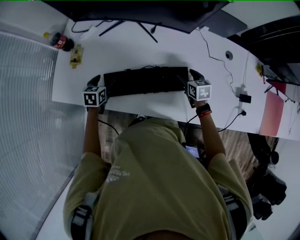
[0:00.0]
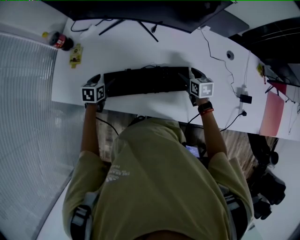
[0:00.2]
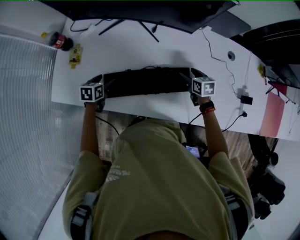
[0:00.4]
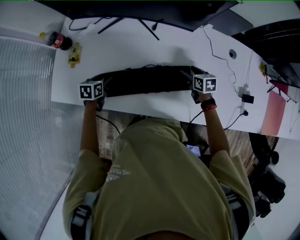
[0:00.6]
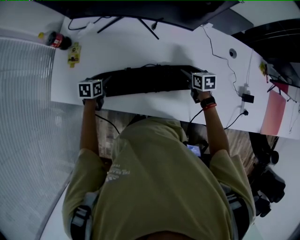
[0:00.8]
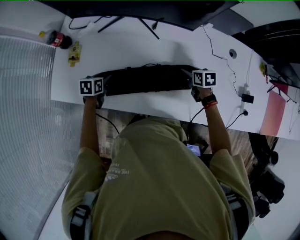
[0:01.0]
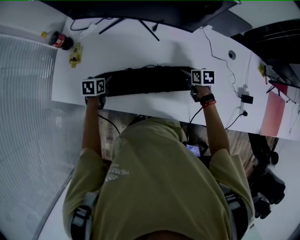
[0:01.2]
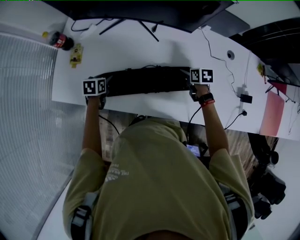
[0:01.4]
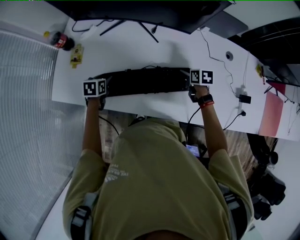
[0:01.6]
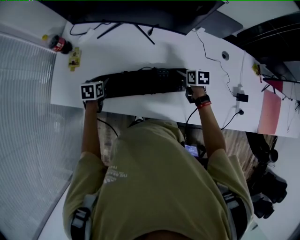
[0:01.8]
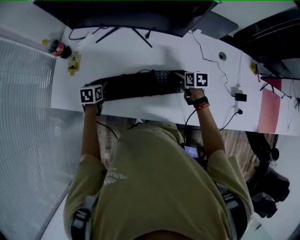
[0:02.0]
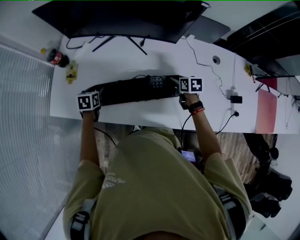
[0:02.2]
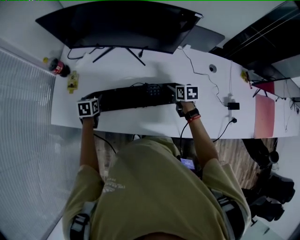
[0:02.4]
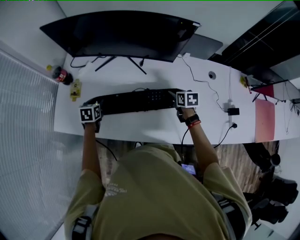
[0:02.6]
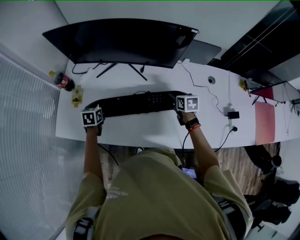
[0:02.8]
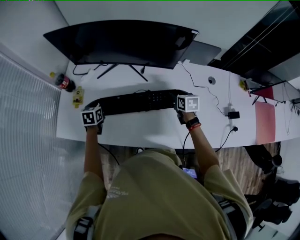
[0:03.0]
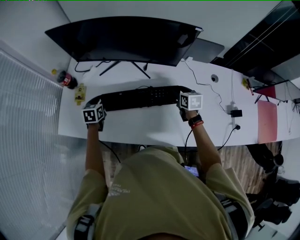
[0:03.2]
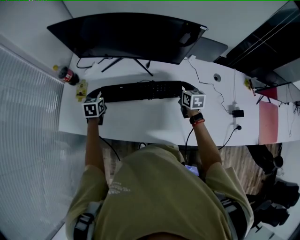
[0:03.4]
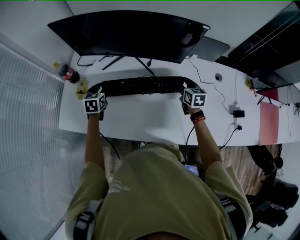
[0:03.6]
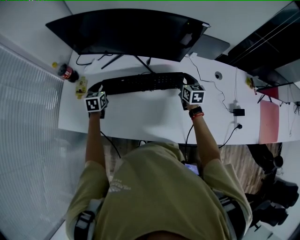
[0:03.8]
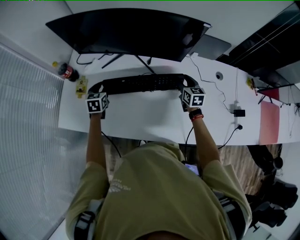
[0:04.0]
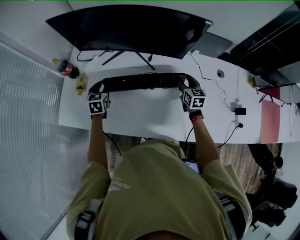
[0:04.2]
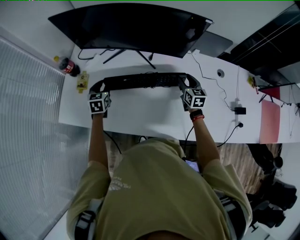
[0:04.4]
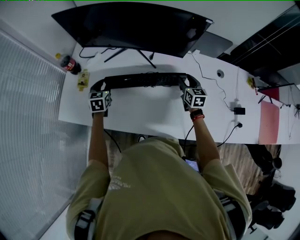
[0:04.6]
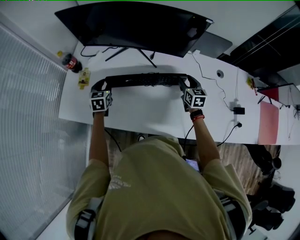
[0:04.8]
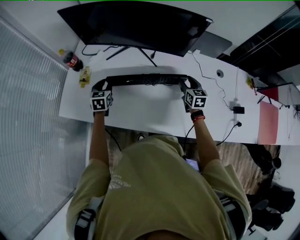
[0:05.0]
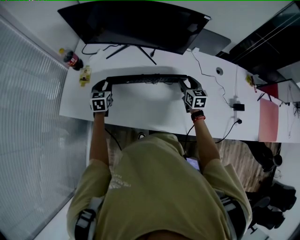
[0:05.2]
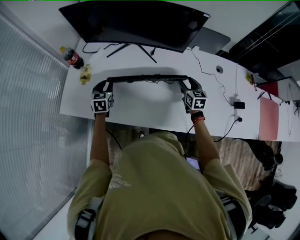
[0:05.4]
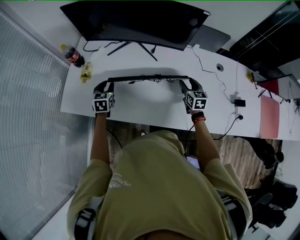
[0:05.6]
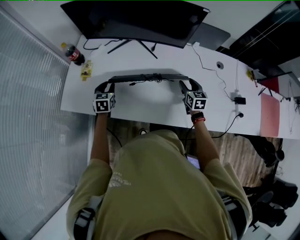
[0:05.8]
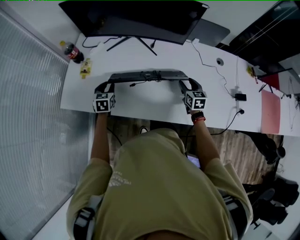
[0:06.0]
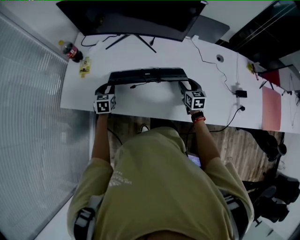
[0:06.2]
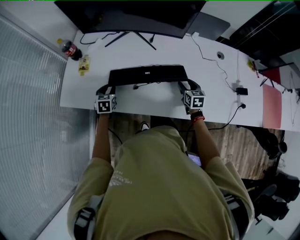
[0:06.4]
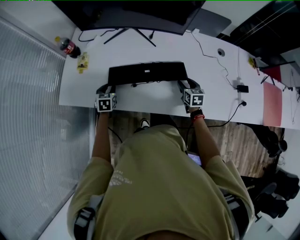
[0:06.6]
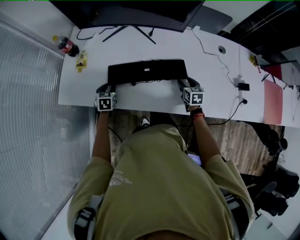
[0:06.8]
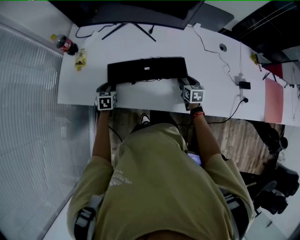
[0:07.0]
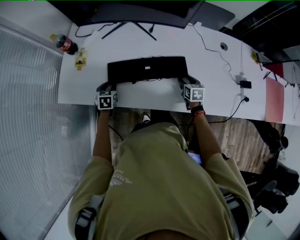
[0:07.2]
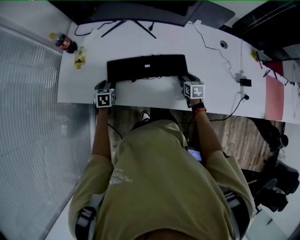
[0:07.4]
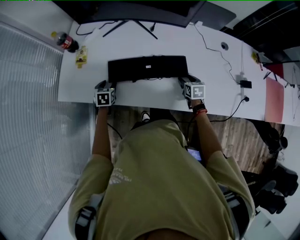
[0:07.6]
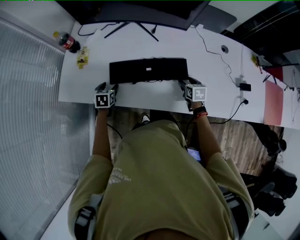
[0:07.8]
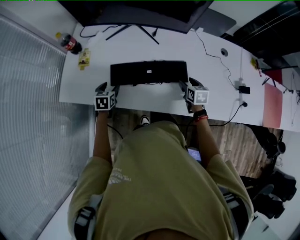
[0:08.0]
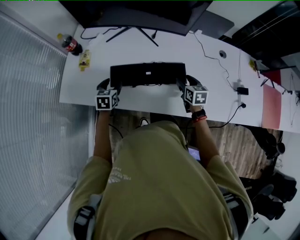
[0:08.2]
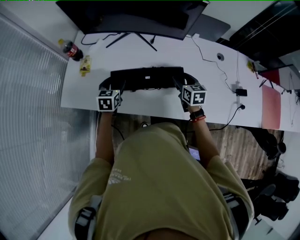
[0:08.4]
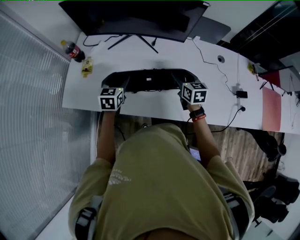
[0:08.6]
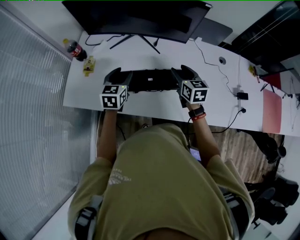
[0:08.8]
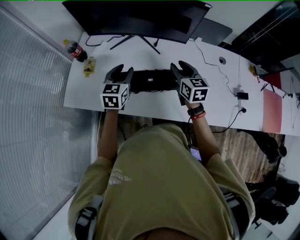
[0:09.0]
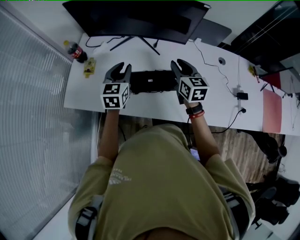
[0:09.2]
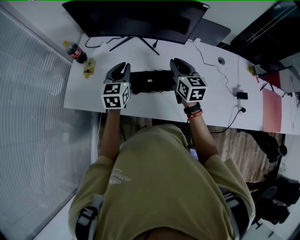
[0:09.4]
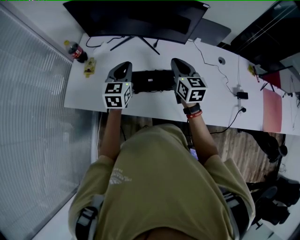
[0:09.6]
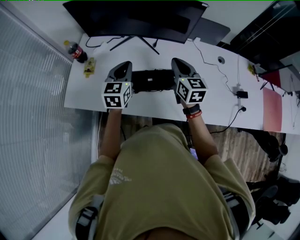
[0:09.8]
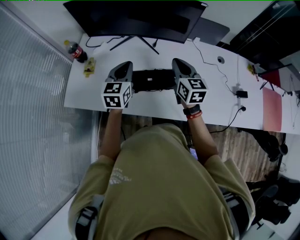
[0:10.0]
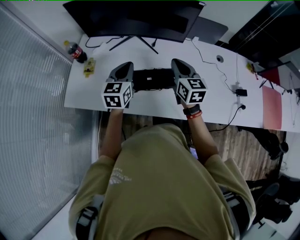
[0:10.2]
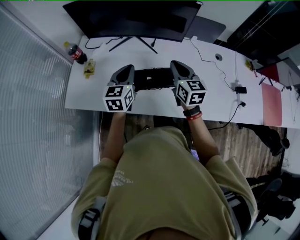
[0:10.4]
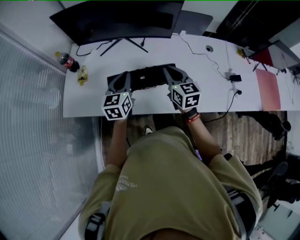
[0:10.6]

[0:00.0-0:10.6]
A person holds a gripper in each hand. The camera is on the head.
0.0 to 1.6 s: The left gripper closes.
1.6 to 3.0 s: The left gripper travels upward and forward by roughly 10 cm; the right gripper goes about 10 cm upward.
4.6 to 6.0 s: Both grippers travel together backward, about 10 cm.
6.0 to 7.6 s: The grippers both shift downward by roughly 10 cm. The right gripper swivels some 20 degrees.
7.6 to 9.0 s: The left gripper is displaced upward and to the right by roughly 25 cm, and tips its fingers upward by some 30 degrees; the right gripper goes some 25 cm upward and to the left, and rotates roughly 30 degrees.
9.0 to 10.6 s: The two grippers go about 5 cm backward. The left gripper closes up, while the right gripper closes up.

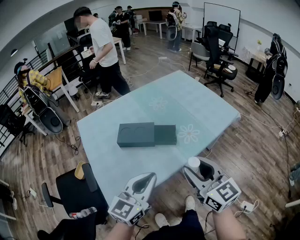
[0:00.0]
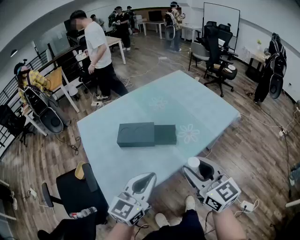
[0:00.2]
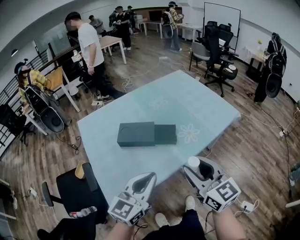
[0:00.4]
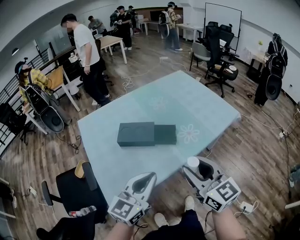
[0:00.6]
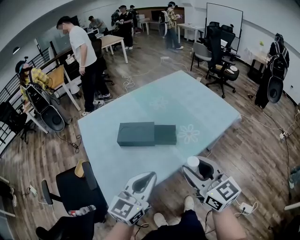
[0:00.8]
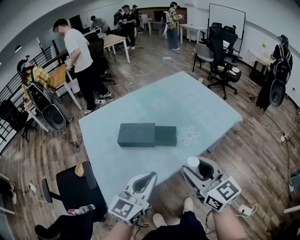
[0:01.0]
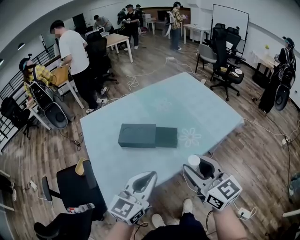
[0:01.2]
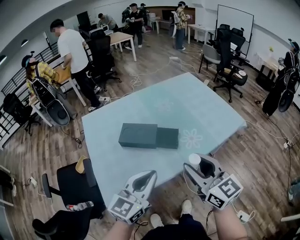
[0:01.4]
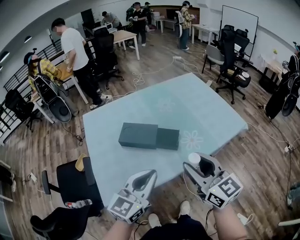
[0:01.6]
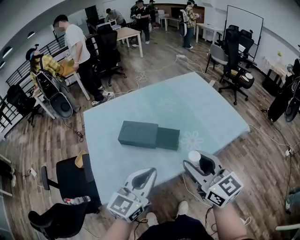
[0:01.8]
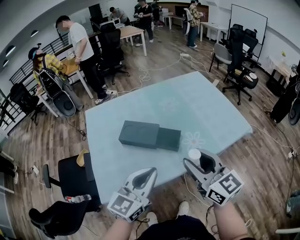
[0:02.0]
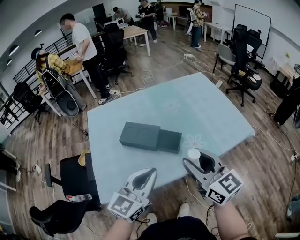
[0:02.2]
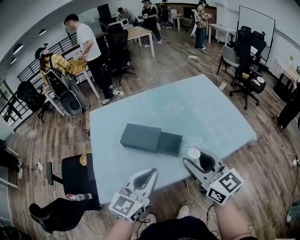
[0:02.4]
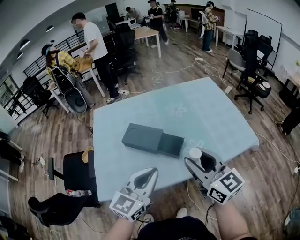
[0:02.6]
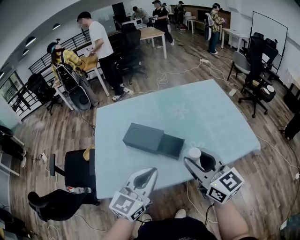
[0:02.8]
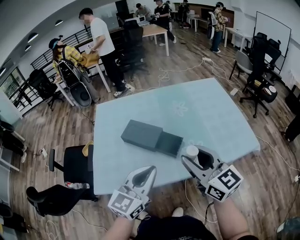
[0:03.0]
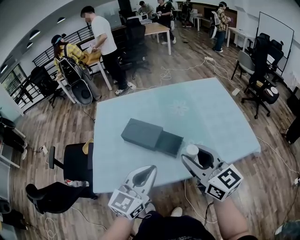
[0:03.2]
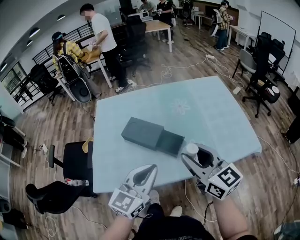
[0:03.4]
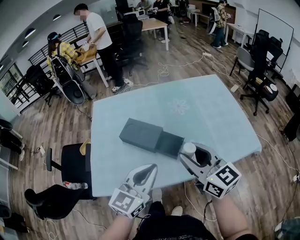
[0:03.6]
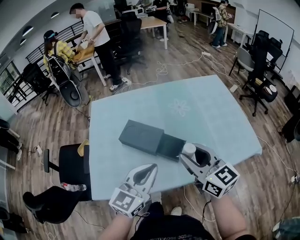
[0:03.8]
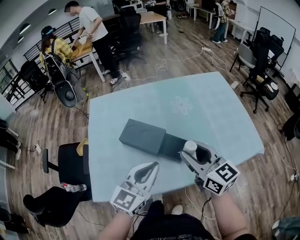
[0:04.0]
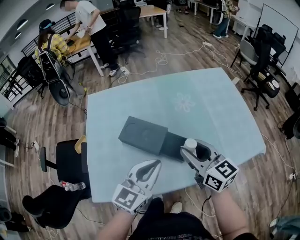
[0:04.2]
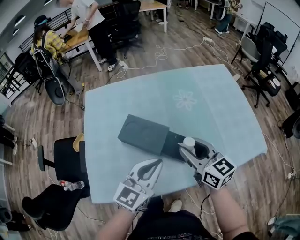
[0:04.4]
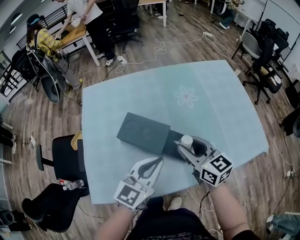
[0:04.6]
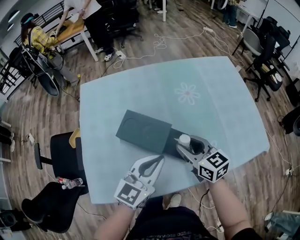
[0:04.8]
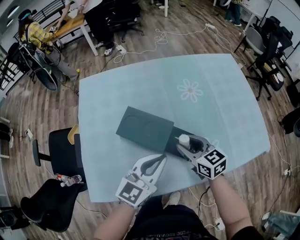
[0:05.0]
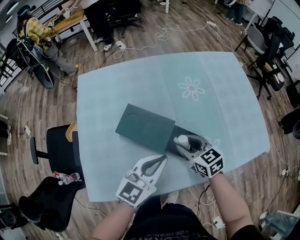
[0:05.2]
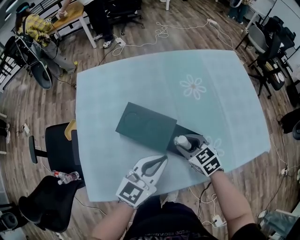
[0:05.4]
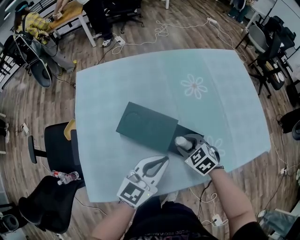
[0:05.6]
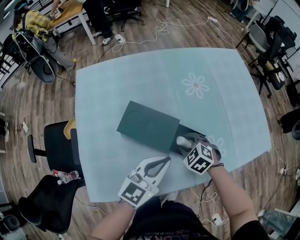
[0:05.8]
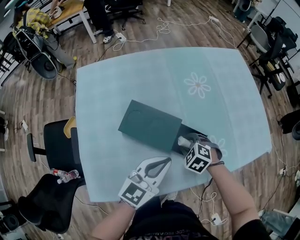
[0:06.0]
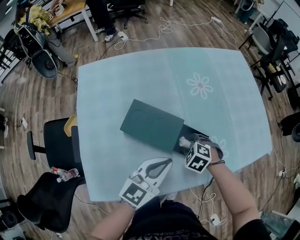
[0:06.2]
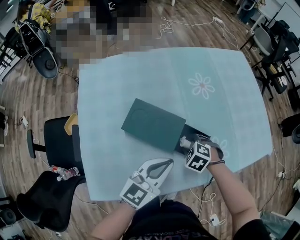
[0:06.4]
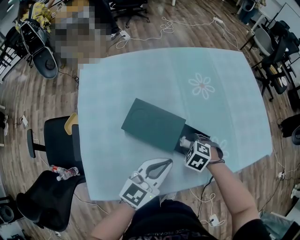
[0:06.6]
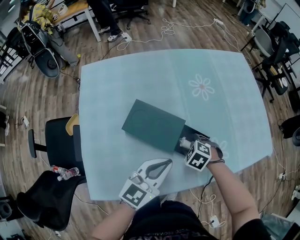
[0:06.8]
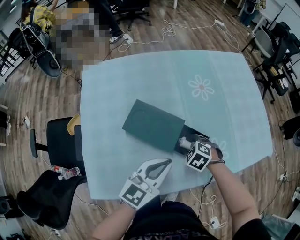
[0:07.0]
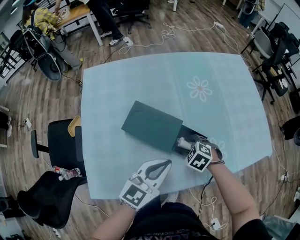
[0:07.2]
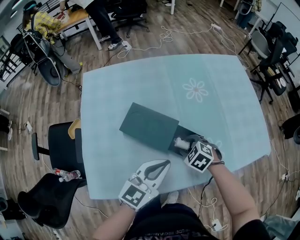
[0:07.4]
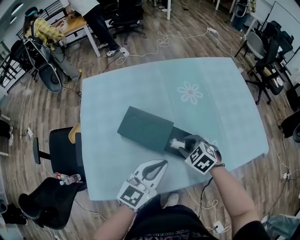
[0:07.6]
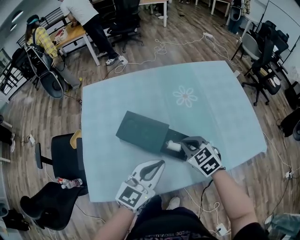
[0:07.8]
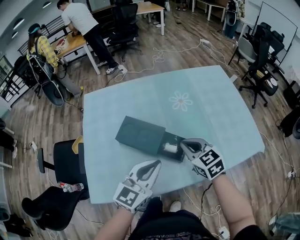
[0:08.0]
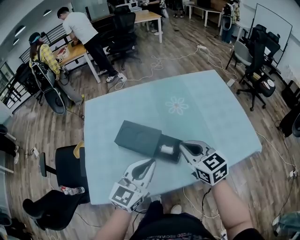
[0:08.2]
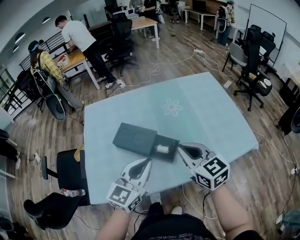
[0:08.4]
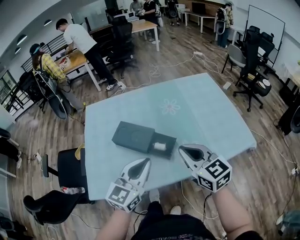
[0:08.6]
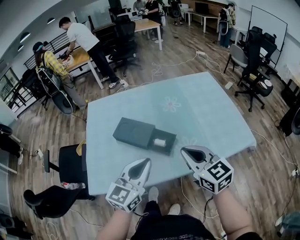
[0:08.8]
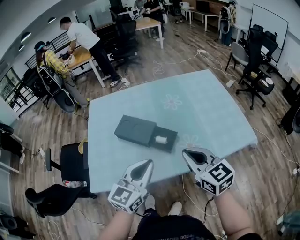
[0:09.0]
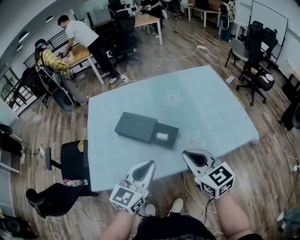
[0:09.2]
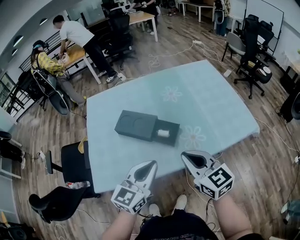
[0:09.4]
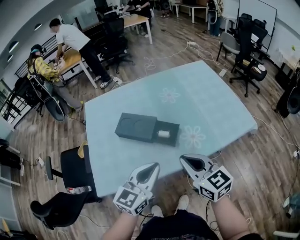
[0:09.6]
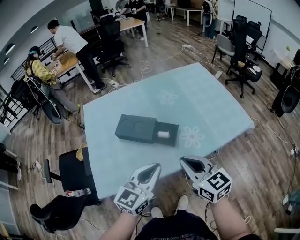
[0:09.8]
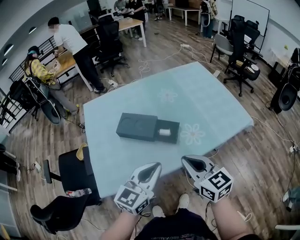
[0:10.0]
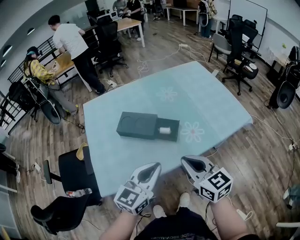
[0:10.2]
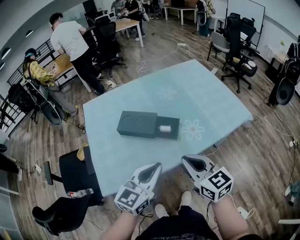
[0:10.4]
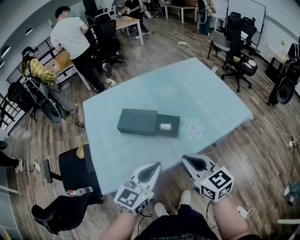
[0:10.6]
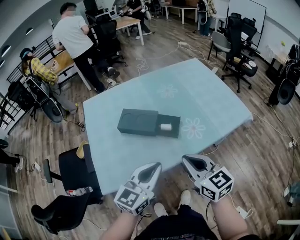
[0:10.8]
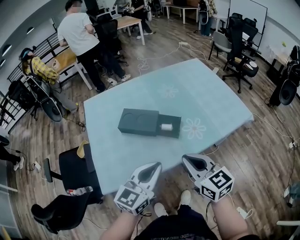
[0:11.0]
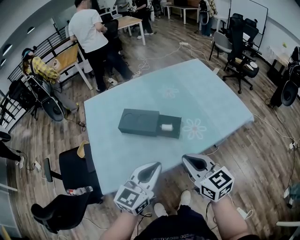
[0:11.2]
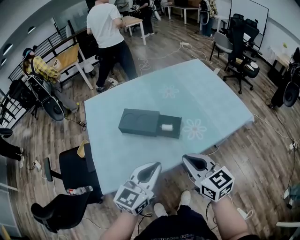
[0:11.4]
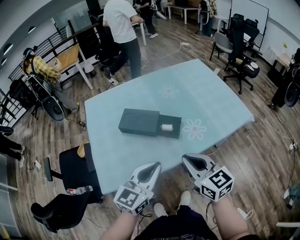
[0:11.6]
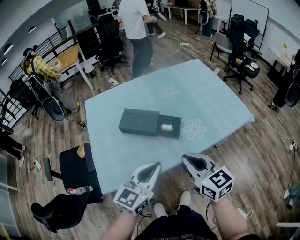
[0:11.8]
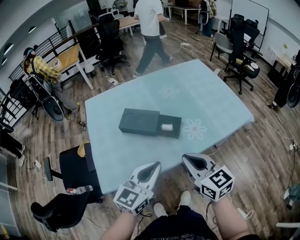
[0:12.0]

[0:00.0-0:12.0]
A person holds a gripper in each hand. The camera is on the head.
0.0 to 1.6 s: The right gripper ends up approximately 5 cm from where it was.
1.6 to 3.0 s: The left gripper heads to the right, covering some 5 cm. The right gripper heads forward and to the right, covering about 10 cm.
3.0 to 4.4 s: The grippers both shift forward and downward by approximately 20 cm.
4.4 to 6.0 s: The right gripper moves downward, some 25 cm, and points its fingers roughly 60 degrees further downward; the left gripper shifts roughly 5 cm downward.
6.0 to 7.6 s: The right gripper travels upward by roughly 5 cm.
7.6 to 9.0 s: The right gripper is displaced upward, backward and to the right by approximately 30 cm, tips its fingers upward by approximately 40 degrees, and closes, while the left gripper is displaced backward and upward by some 15 cm.
9.0 to 10.4 s: Both grippers move backward and to the left, about 10 cm.
10.4 to 12.0 s: Neither gripper changes place.

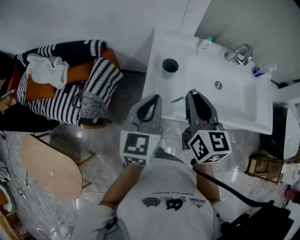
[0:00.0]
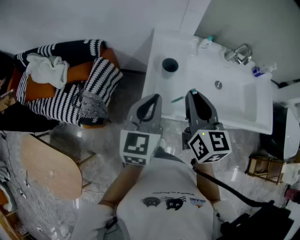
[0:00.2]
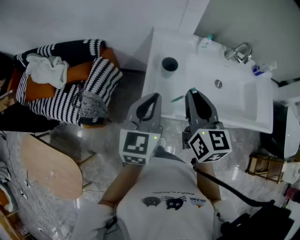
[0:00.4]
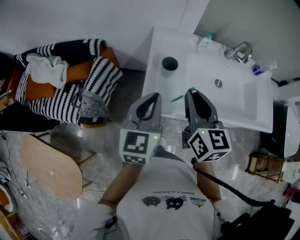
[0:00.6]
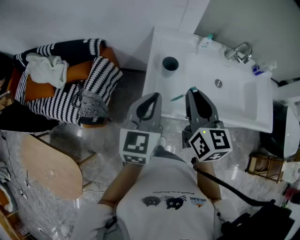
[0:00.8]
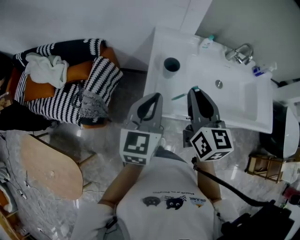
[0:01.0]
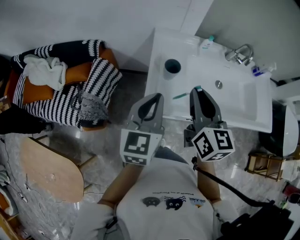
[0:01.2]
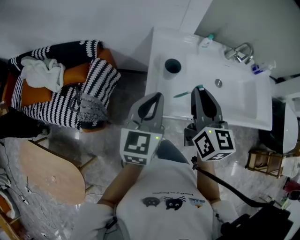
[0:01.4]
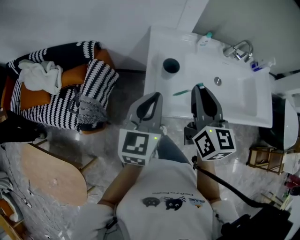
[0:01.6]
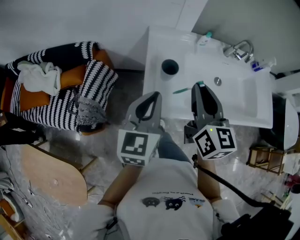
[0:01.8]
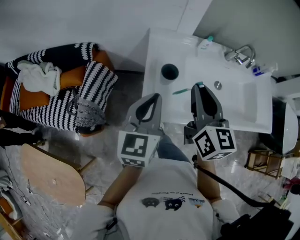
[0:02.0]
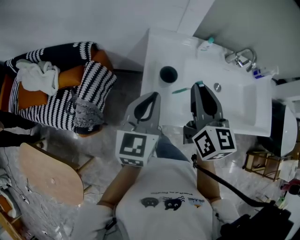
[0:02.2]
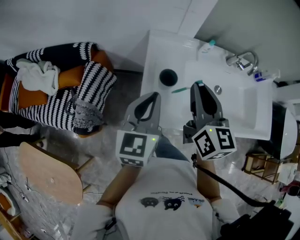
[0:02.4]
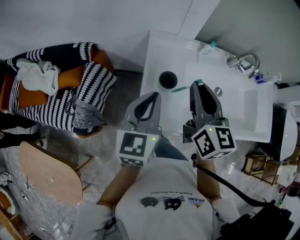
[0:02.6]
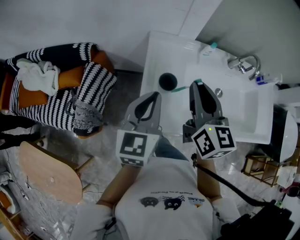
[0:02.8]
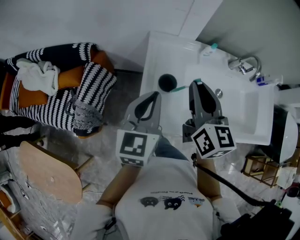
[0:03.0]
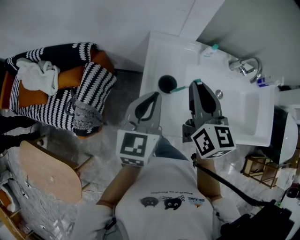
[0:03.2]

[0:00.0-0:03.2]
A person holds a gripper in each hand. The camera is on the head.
0.0 to 1.6 s: The grippers stay close to where they were, moving slightly.
1.6 to 3.2 s: Both grippers move forward, roughly 10 cm.
